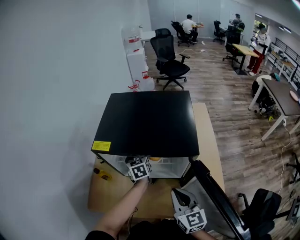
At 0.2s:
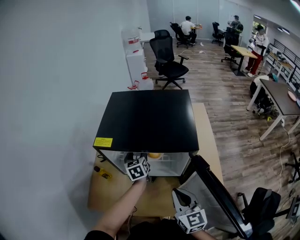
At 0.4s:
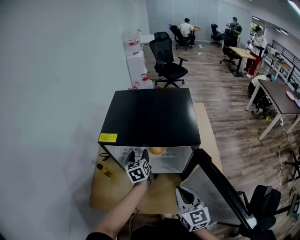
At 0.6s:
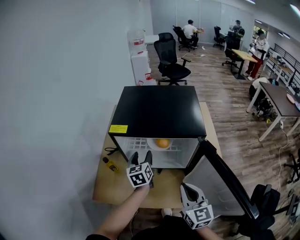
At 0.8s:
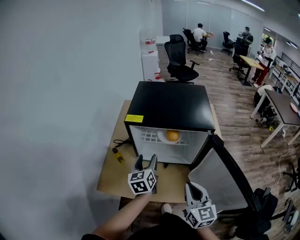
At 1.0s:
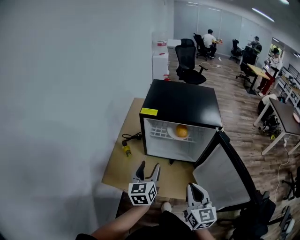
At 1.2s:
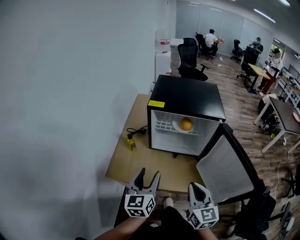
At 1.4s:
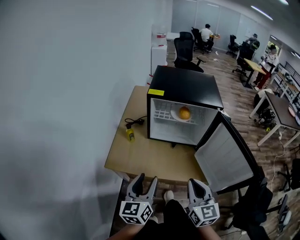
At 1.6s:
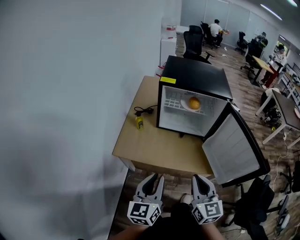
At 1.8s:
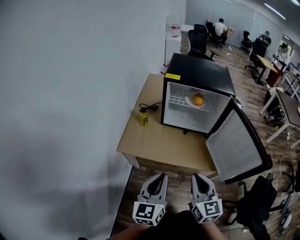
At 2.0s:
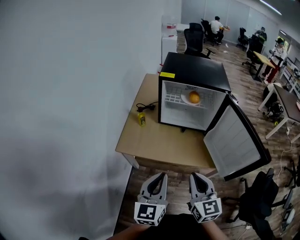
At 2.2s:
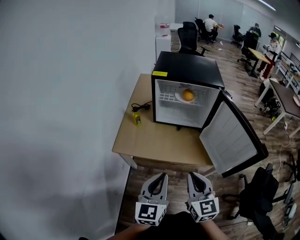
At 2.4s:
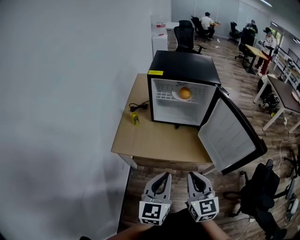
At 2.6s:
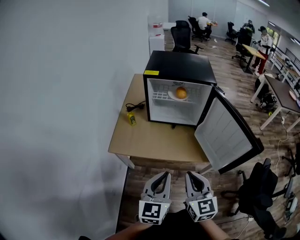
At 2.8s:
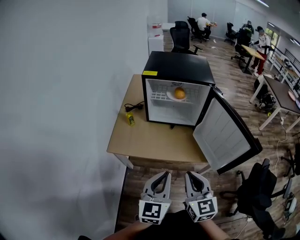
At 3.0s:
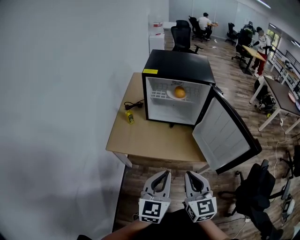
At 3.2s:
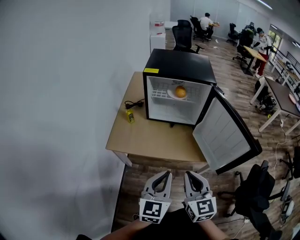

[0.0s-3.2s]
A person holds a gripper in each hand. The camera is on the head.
0.0s to 1.6s: The right gripper moves backward and to the left, some 30 cm. Meanwhile the left gripper heads backward, covering approximately 50 cm, swivels roughly 30 degrees, and closes its fingers.
1.6s to 3.2s: The right gripper moves backward, some 5 cm. The left gripper is displaced to the right and backward by approximately 10 cm.

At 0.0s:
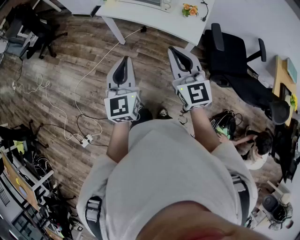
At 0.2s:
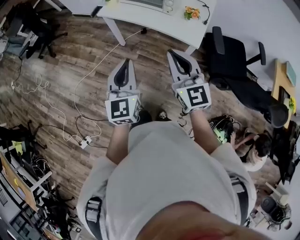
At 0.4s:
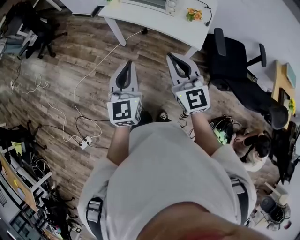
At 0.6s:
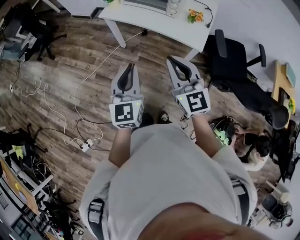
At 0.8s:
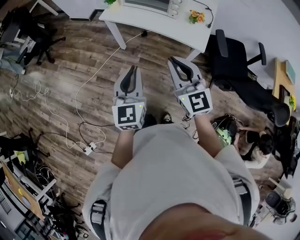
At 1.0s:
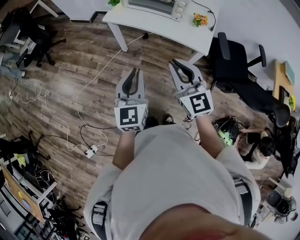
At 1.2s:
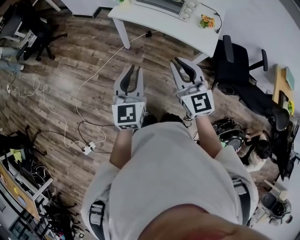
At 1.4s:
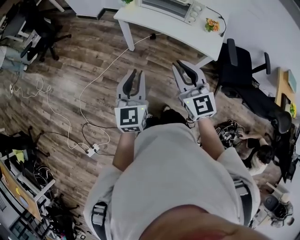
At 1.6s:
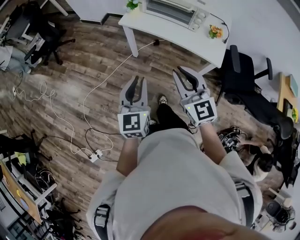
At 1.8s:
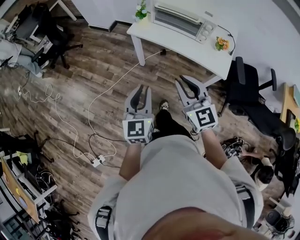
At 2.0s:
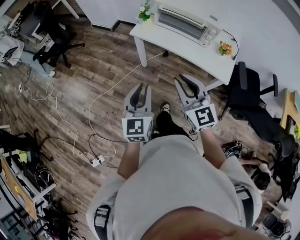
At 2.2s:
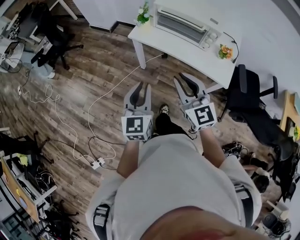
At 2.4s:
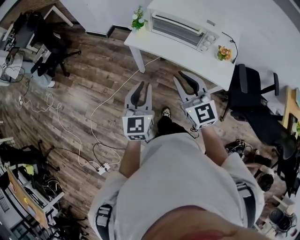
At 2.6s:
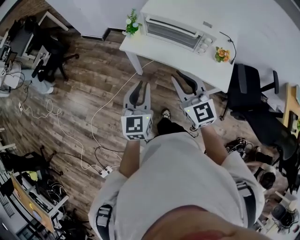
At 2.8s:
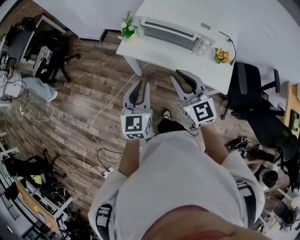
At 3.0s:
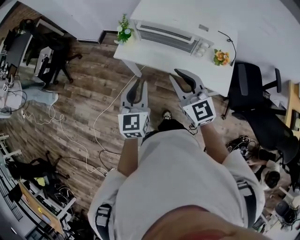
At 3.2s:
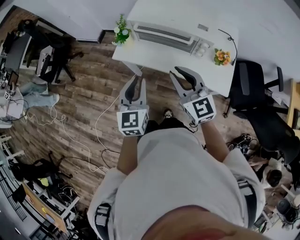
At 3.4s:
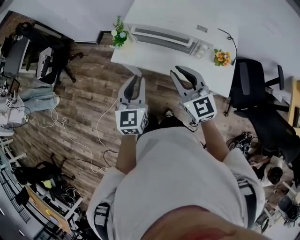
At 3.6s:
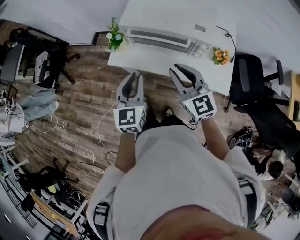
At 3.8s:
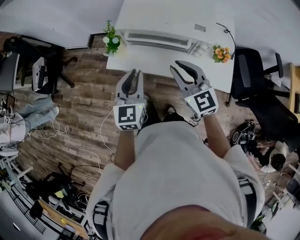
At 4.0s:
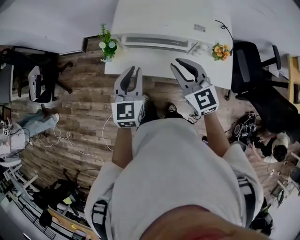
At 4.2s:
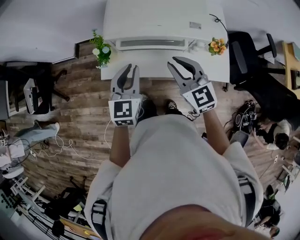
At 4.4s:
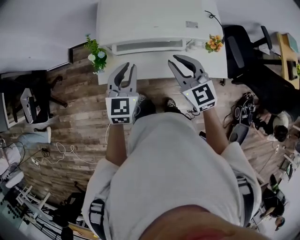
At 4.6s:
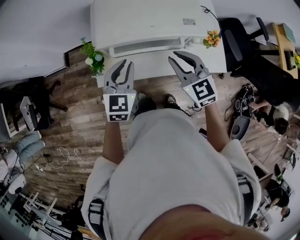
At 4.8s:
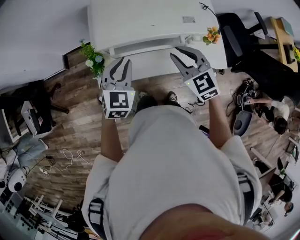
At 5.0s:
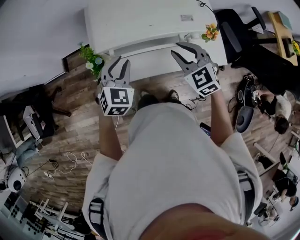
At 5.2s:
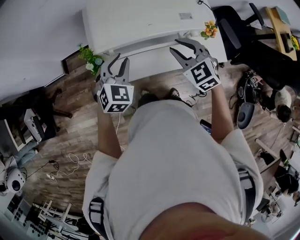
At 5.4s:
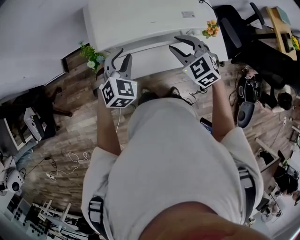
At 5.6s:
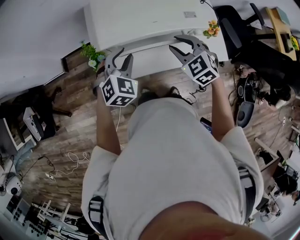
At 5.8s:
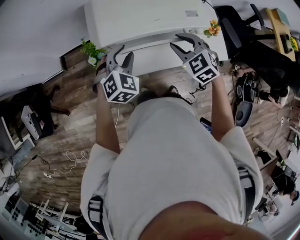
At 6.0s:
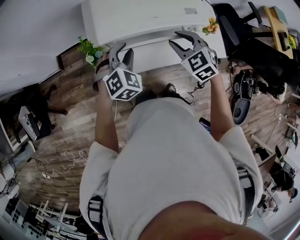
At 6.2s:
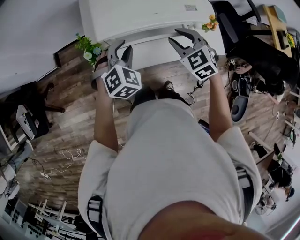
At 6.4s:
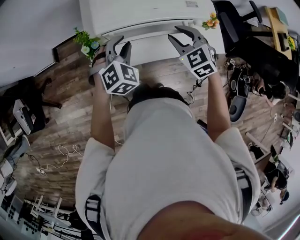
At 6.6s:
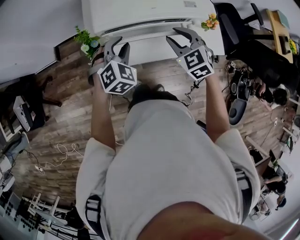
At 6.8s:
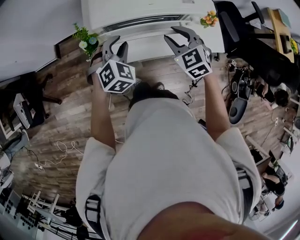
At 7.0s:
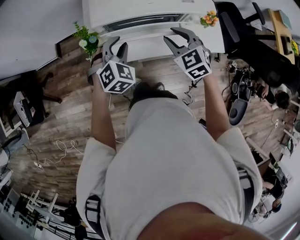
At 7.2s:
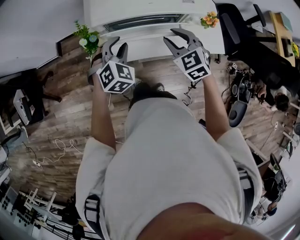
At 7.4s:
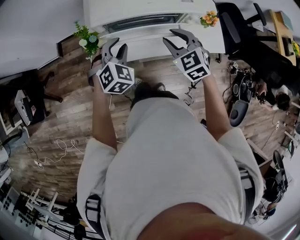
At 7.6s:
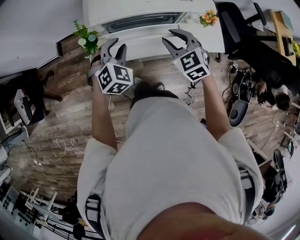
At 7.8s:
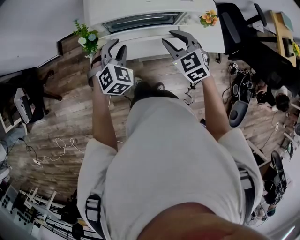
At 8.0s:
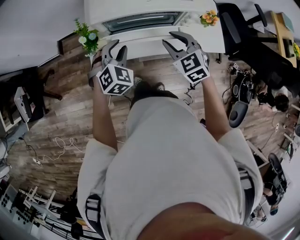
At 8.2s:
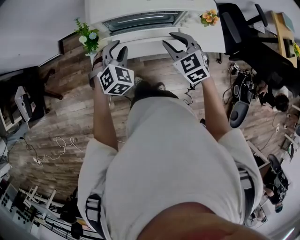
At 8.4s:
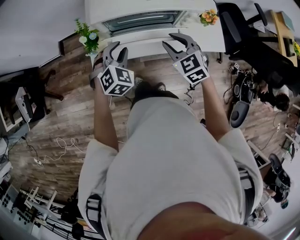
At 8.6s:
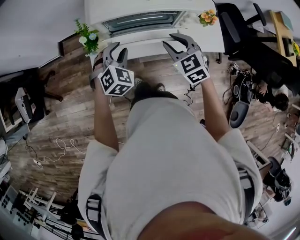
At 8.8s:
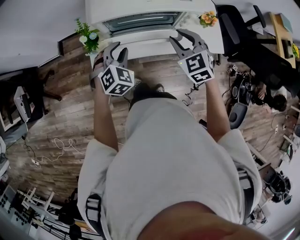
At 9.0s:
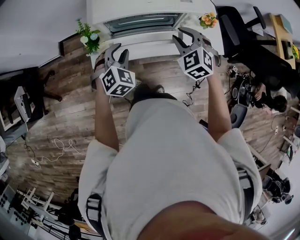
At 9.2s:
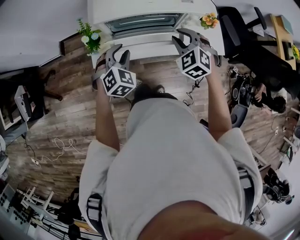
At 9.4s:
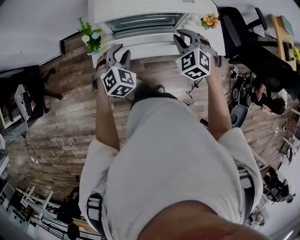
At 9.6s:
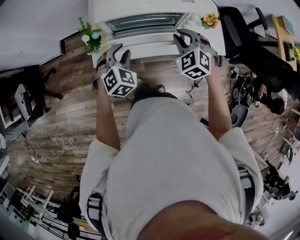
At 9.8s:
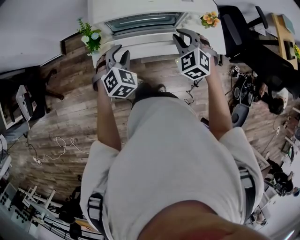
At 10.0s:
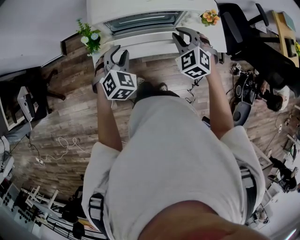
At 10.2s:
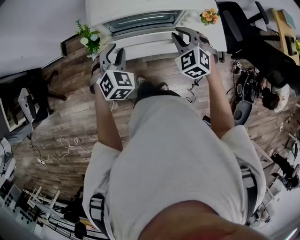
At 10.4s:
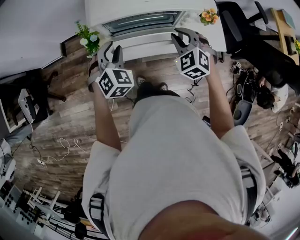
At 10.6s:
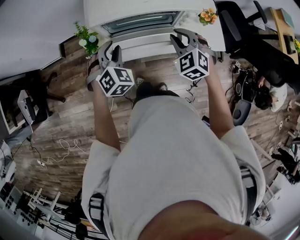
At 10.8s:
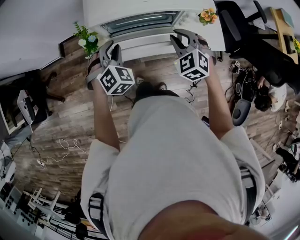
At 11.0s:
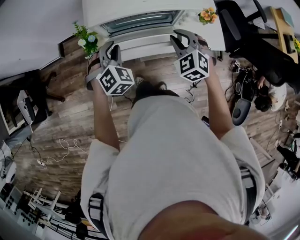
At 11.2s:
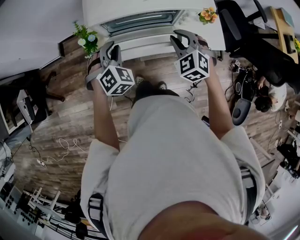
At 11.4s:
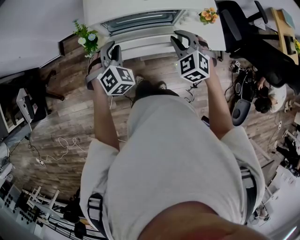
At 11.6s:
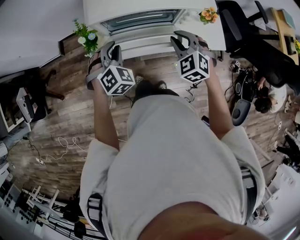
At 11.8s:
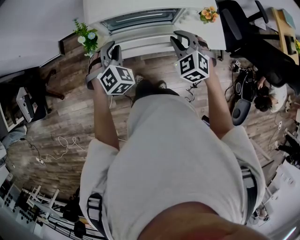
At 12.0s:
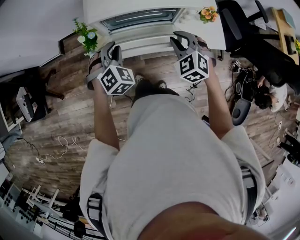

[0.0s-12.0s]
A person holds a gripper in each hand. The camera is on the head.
0.0s to 1.6s: Both grippers travel together to the left and forward, roughly 20 cm.
1.6s to 3.0s: The two grippers go approximately 25 cm forward.
3.0s to 4.4s: Both grippers move forward, some 20 cm. The left gripper turns by roughly 30 degrees. Meanwhile the right gripper turns by about 20 degrees.
4.4s to 6.0s: The right gripper is displaced downward by roughly 5 cm, and swivels about 20 degrees, while the left gripper goes about 5 cm forward, and changes its angle by about 40 degrees.
6.0s to 7.6s: Both grippers travel together backward, approximately 5 cm.
7.6s to 9.0s: The grippers move only a little.
9.0s to 12.0s: There are only small adjustments of the grippers.

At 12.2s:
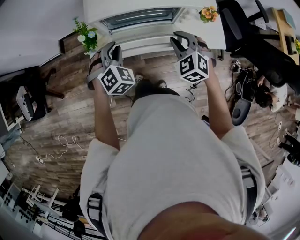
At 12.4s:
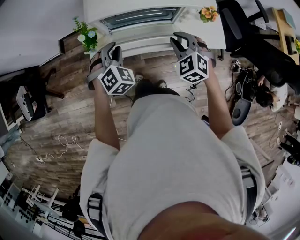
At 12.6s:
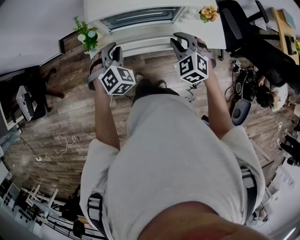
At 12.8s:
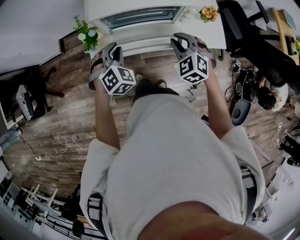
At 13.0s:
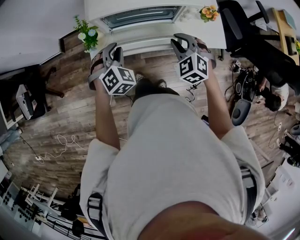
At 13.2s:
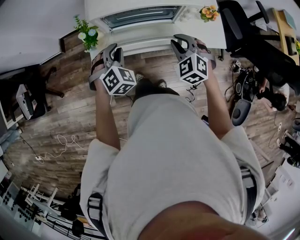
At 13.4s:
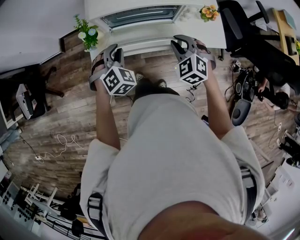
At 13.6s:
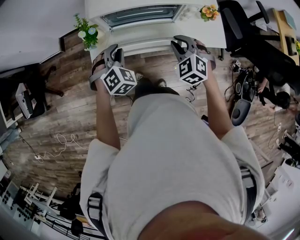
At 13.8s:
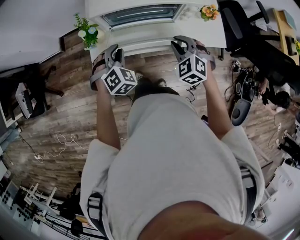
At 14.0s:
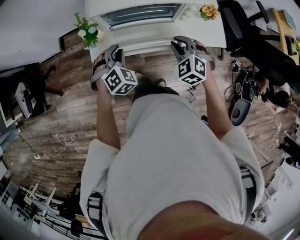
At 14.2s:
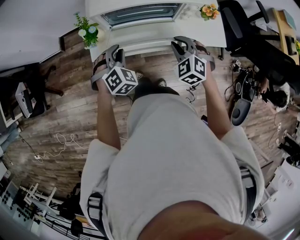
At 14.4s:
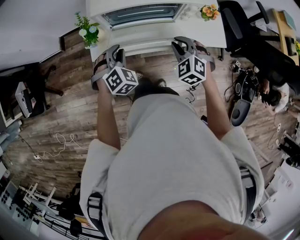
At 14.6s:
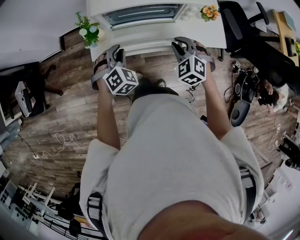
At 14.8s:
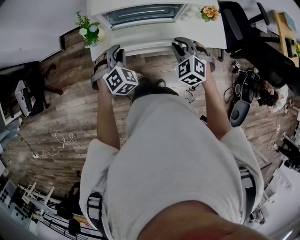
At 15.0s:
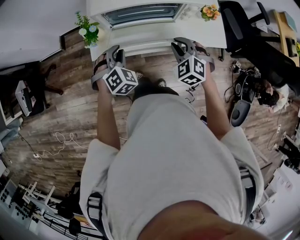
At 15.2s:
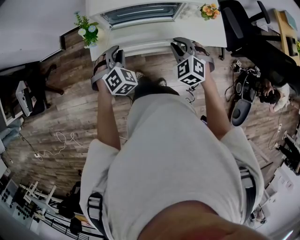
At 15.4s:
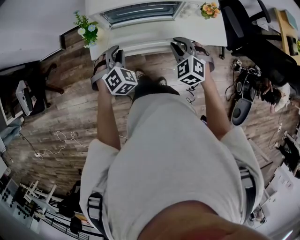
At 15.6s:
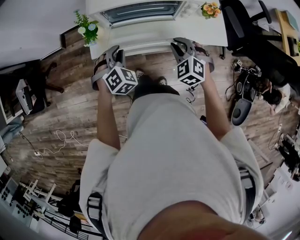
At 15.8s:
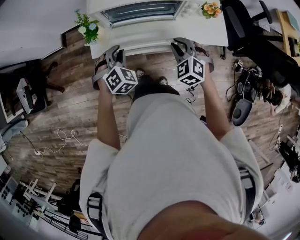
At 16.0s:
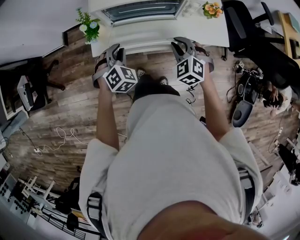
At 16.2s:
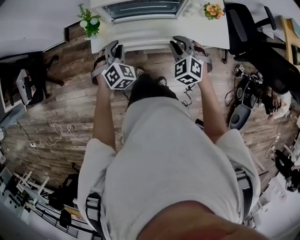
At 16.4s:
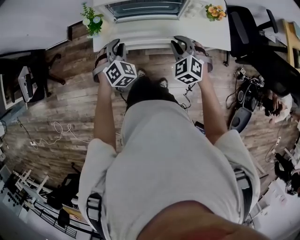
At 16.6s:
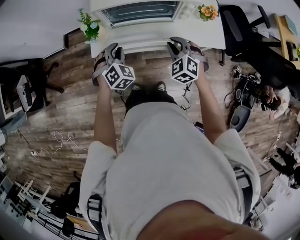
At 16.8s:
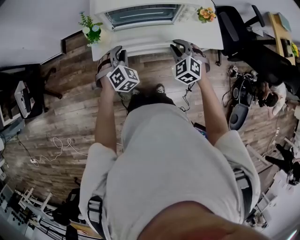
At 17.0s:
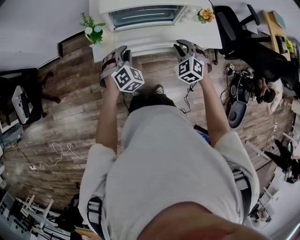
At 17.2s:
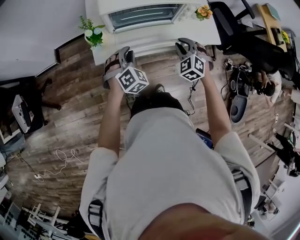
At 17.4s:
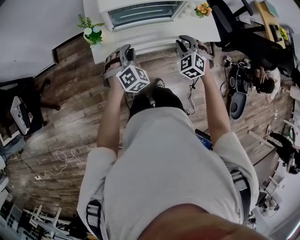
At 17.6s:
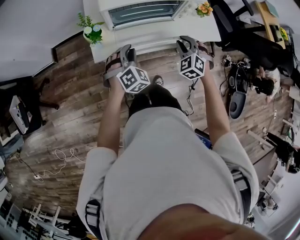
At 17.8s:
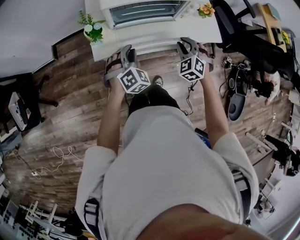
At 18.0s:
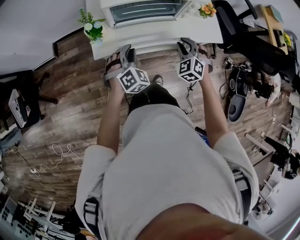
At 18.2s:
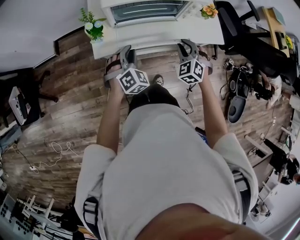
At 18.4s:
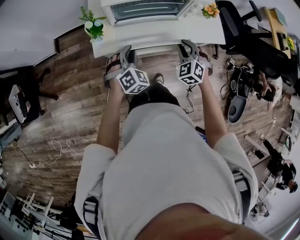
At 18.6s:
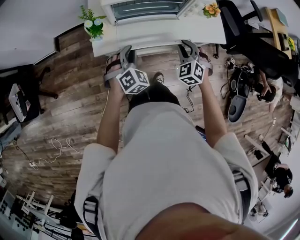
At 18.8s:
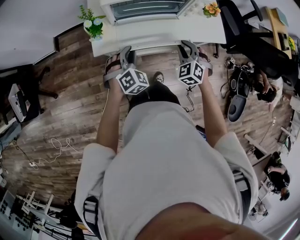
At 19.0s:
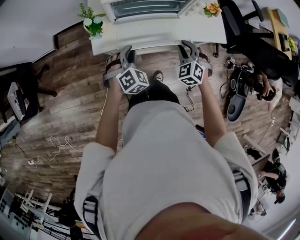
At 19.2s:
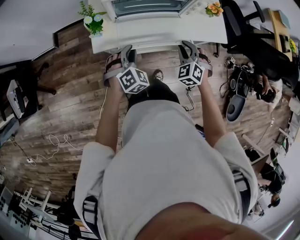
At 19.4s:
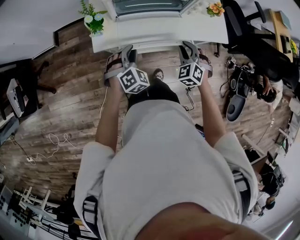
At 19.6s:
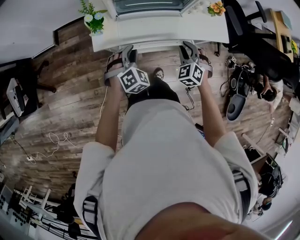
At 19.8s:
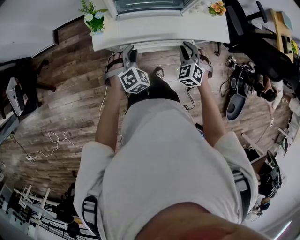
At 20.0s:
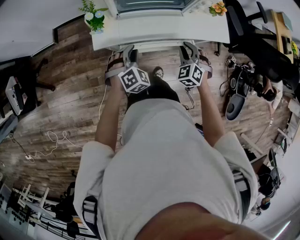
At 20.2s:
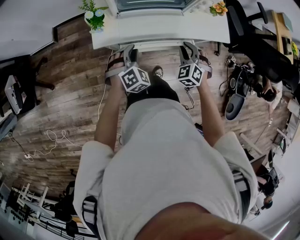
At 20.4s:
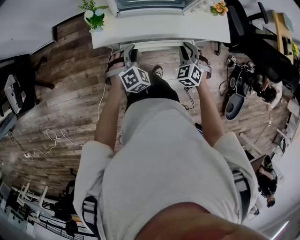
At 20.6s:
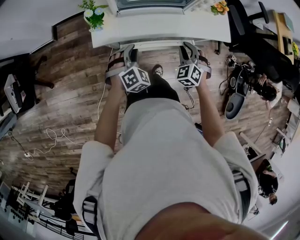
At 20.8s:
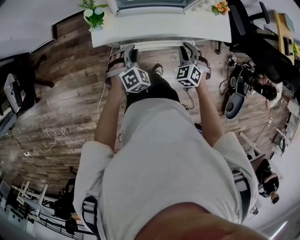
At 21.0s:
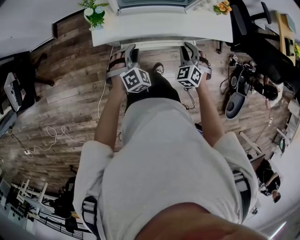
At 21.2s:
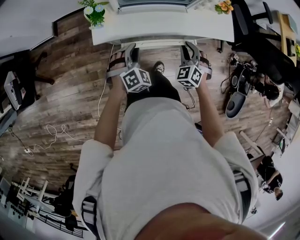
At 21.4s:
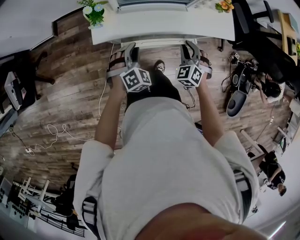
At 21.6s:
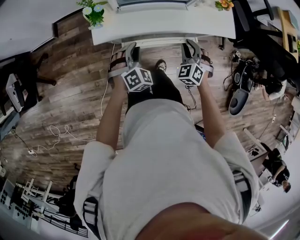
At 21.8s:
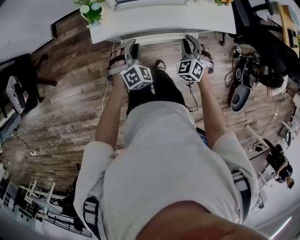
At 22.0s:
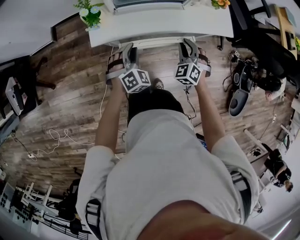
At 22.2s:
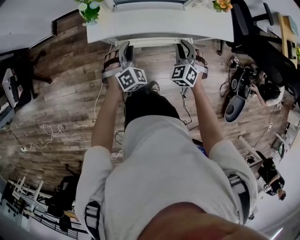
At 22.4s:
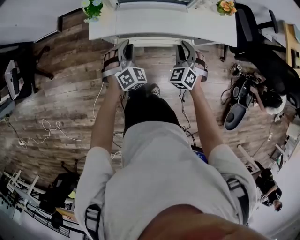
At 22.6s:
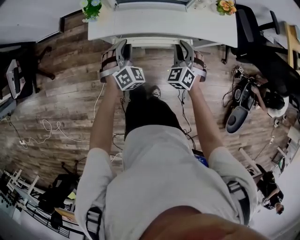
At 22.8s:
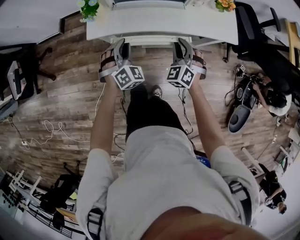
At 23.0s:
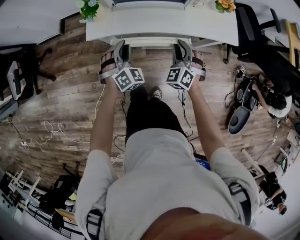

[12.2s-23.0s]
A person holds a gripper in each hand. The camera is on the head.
12.2s to 15.2s: The grippers stay close to where they were, moving slightly.
15.2s to 18.4s: The grippers stay close to where they were, moving slightly.
18.4s to 21.4s: The grippers stay close to where they were, moving slightly.
21.4s to 23.0s: The grippers move only a little.
